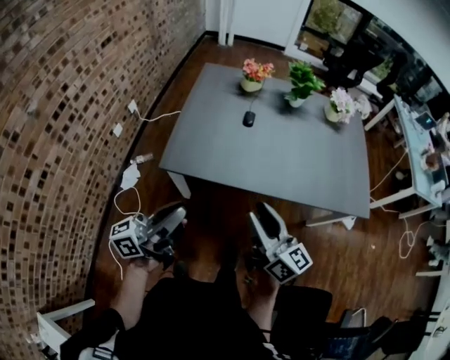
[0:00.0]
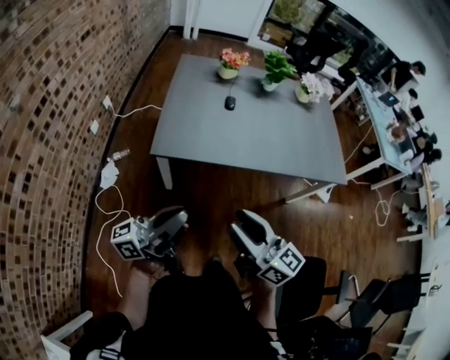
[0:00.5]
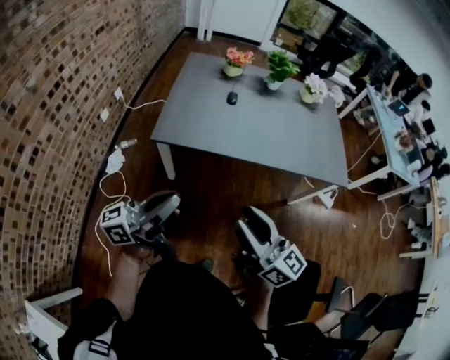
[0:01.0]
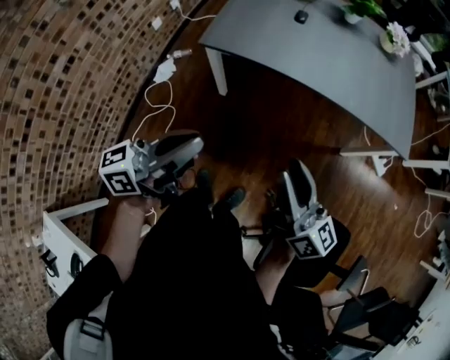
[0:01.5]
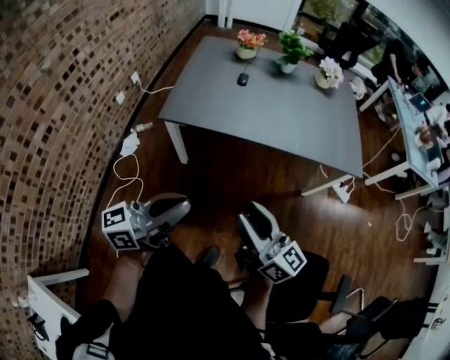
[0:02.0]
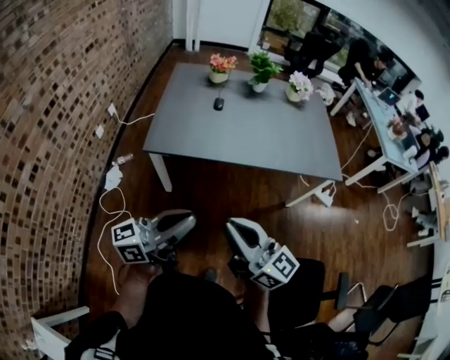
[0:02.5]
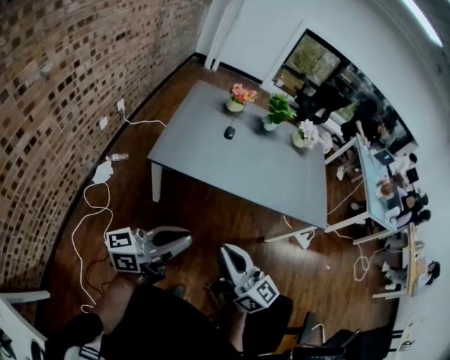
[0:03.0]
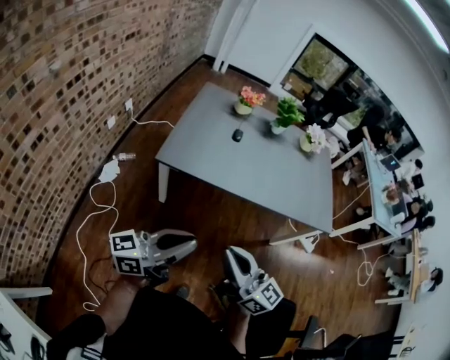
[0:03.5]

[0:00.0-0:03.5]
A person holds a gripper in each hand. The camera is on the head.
0.0 to 2.0 s: The right gripper moves backward, roughly 25 cm; the left gripper goes roughly 25 cm backward and to the right.
2.0 to 3.5 s: The right gripper goes some 10 cm to the left, and closes up. The left gripper ends up approximately 5 cm from where it was.

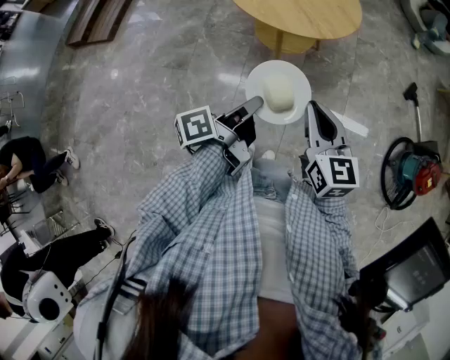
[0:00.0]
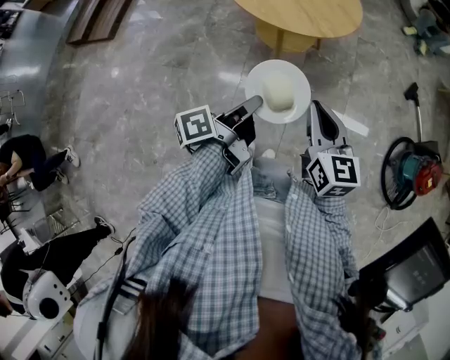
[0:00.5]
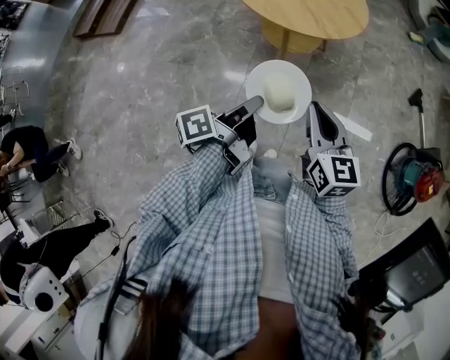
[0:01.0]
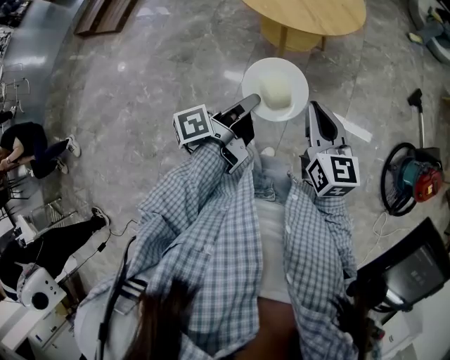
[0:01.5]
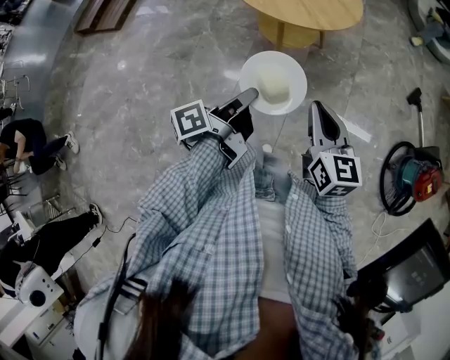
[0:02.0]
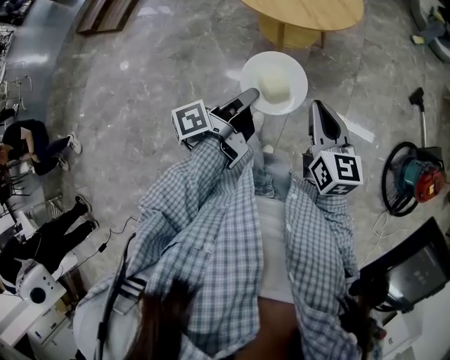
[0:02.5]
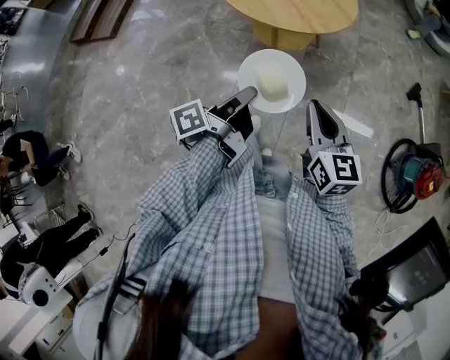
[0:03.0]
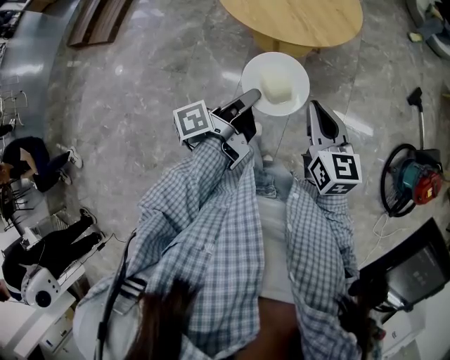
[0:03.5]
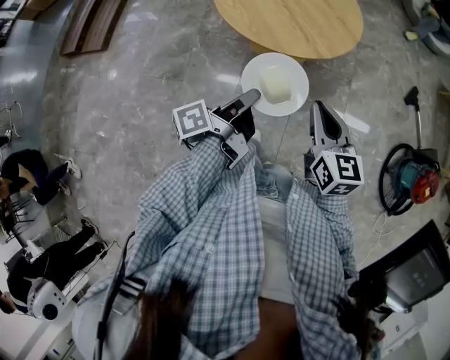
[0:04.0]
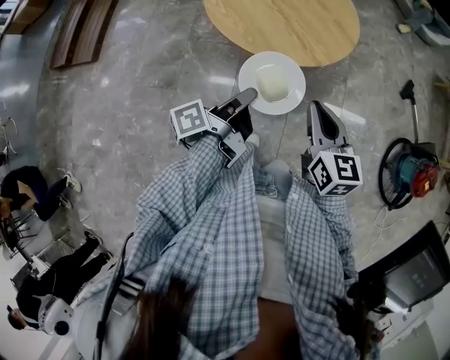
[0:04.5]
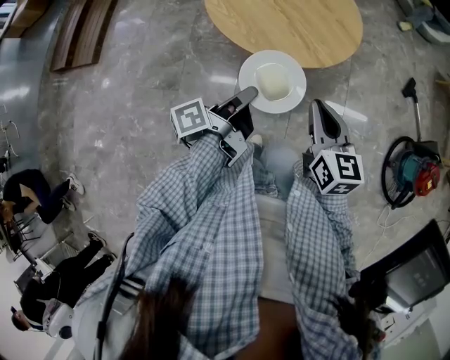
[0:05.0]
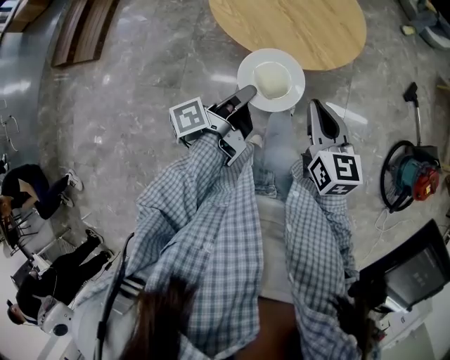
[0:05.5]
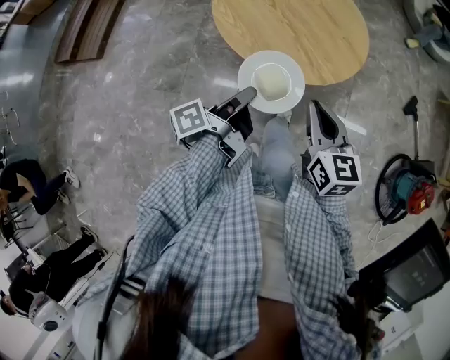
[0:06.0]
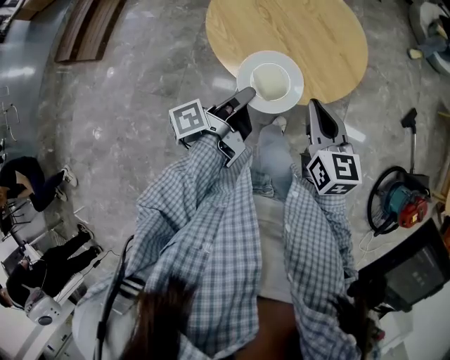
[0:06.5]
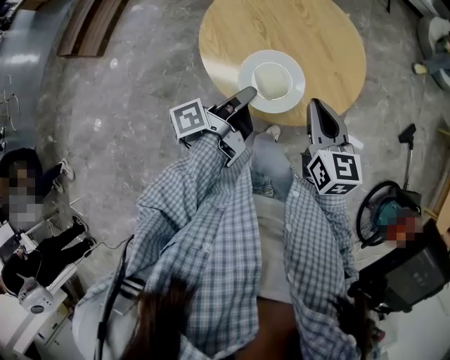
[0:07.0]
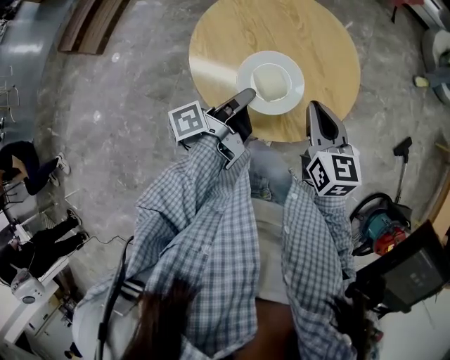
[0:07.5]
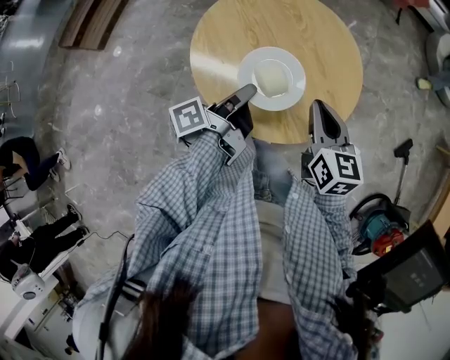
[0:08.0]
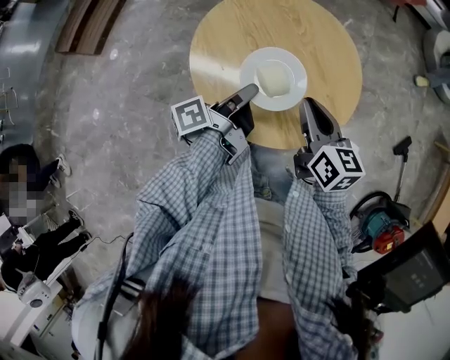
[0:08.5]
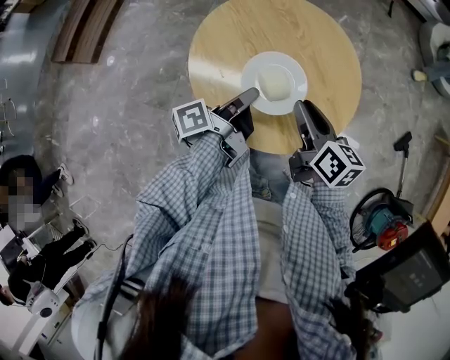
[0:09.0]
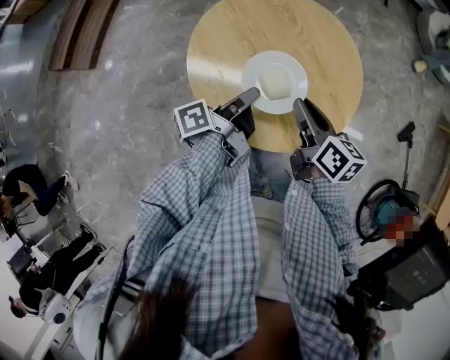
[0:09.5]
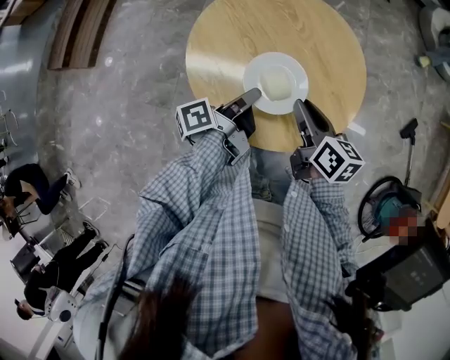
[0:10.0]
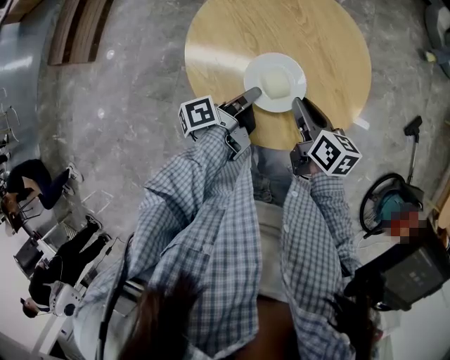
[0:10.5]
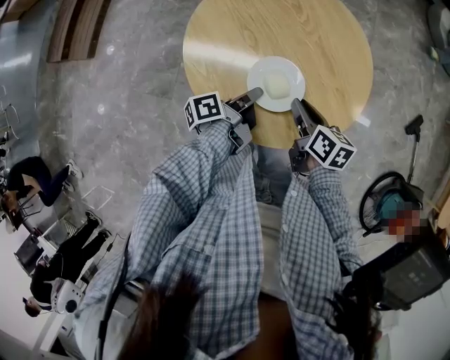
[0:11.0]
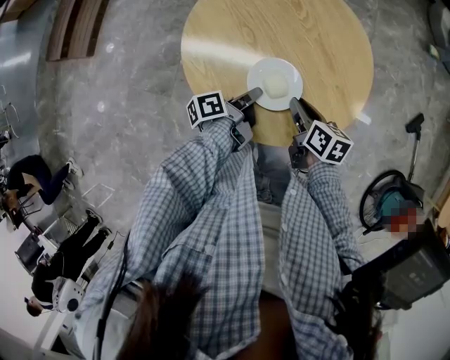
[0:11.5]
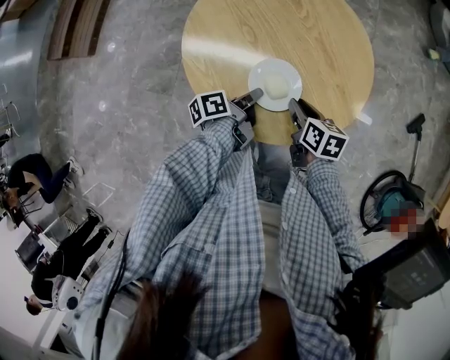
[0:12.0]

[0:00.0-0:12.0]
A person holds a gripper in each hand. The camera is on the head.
0.0 to 2.0 s: The right gripper changes place by approximately 5 cm.
2.0 to 4.0 s: The right gripper moves about 15 cm.
4.0 to 6.0 s: The right gripper changes place by roughly 10 cm.
6.0 to 8.0 s: The right gripper shifts by about 20 cm.
8.0 to 10.0 s: The right gripper changes place by some 5 cm, and rotates about 30 degrees.
10.0 to 12.0 s: The right gripper goes approximately 15 cm downward.

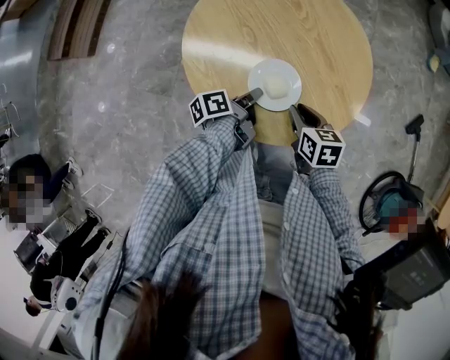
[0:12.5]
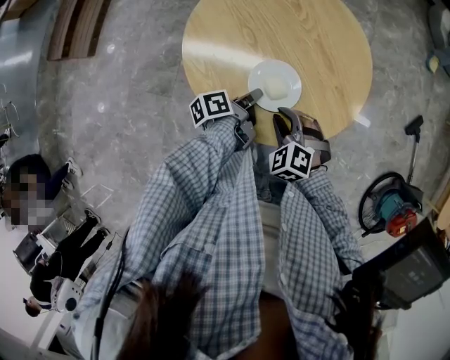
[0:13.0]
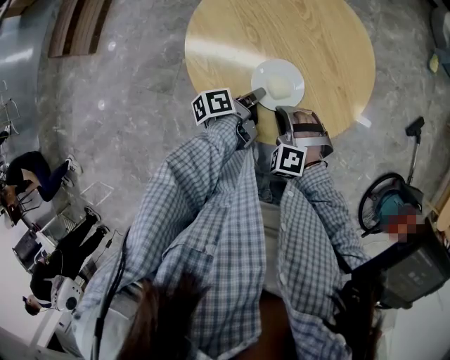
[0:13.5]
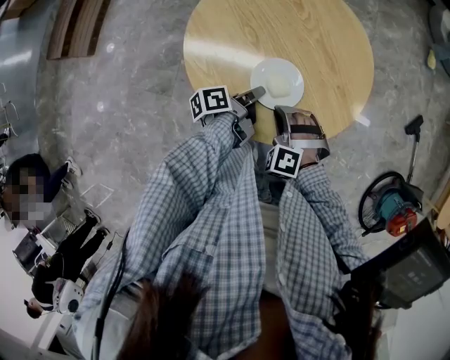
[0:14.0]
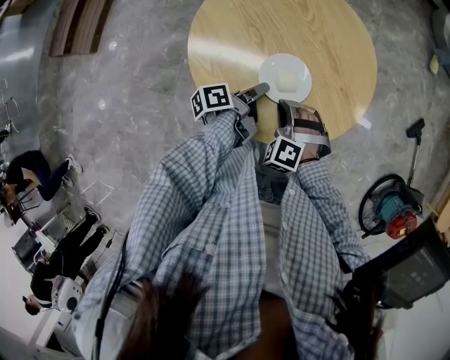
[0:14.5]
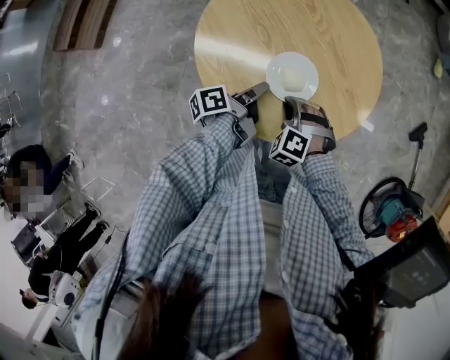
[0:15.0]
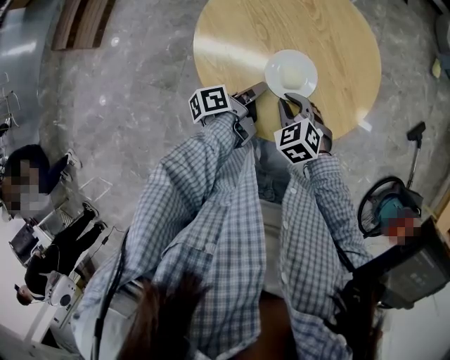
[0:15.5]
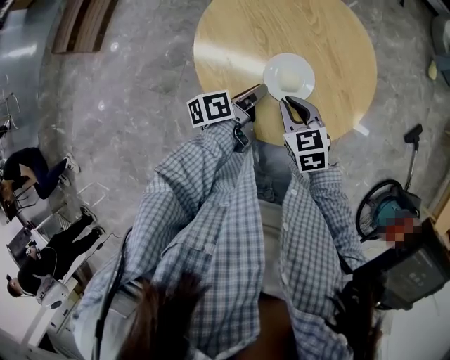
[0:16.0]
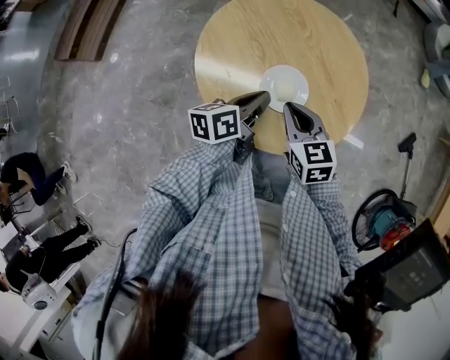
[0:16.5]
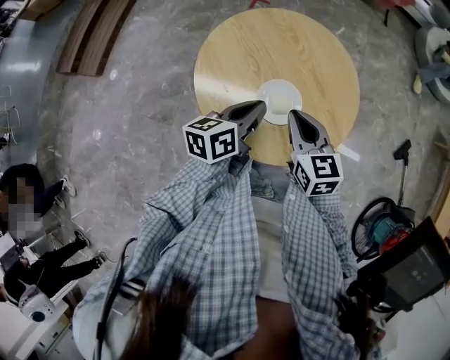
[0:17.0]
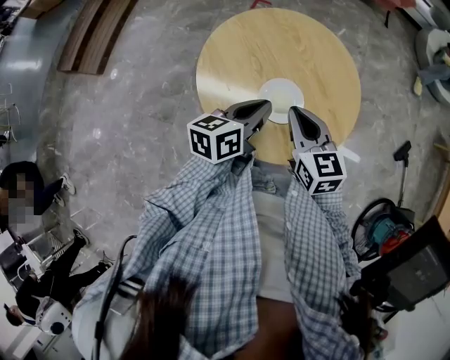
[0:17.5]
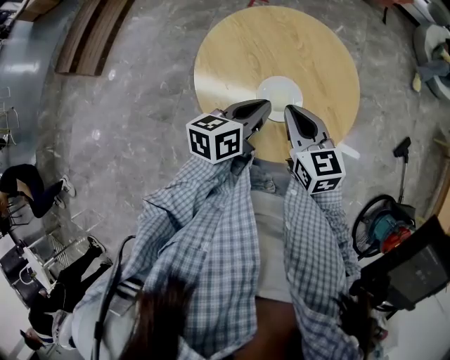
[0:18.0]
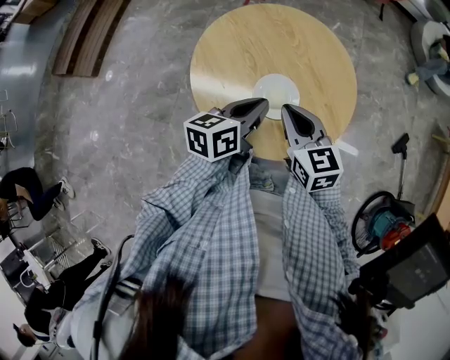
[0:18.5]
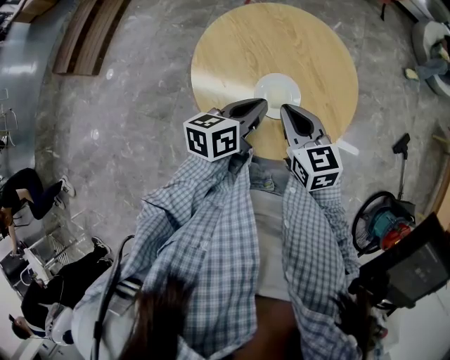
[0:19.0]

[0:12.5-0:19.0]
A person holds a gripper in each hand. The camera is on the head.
12.5 to 14.5 s: The right gripper shifts by roughly 5 cm, and rolls counterclockwise, seen from behind, by about 80 degrees.
14.5 to 17.0 s: The right gripper goes approximately 15 cm upward, and rotates around the line of its fingers by some 60 degrees, clockwise from behind.

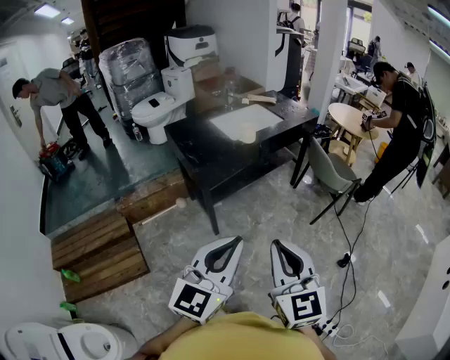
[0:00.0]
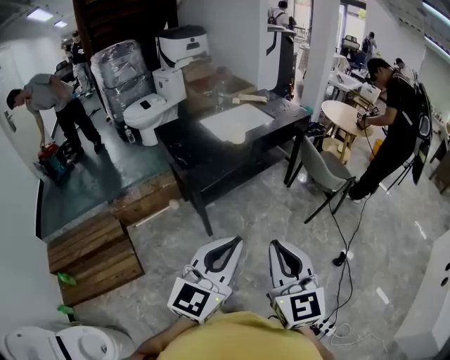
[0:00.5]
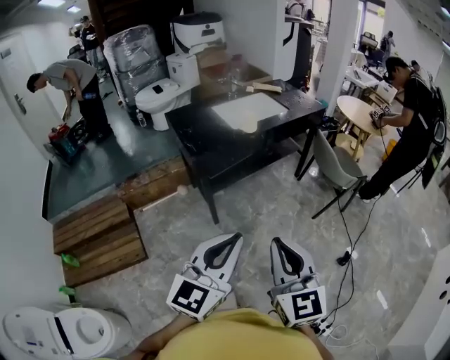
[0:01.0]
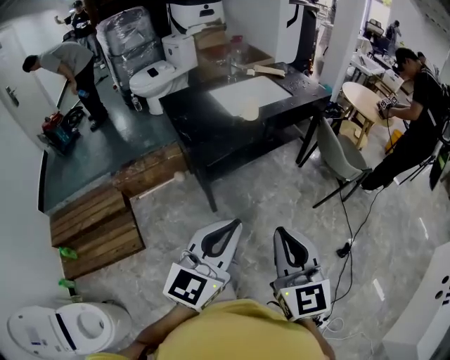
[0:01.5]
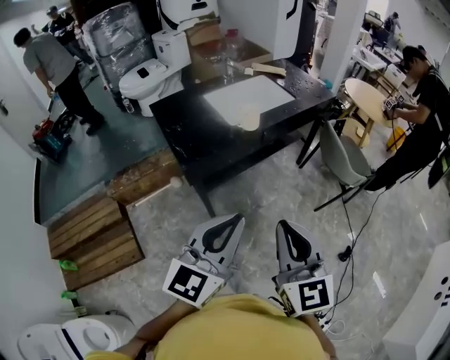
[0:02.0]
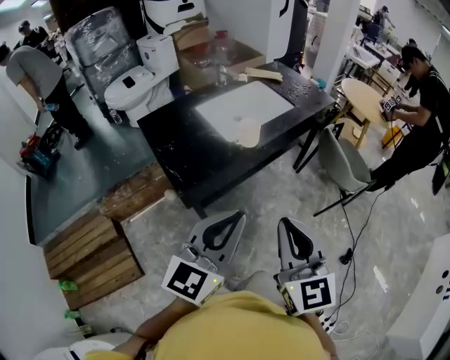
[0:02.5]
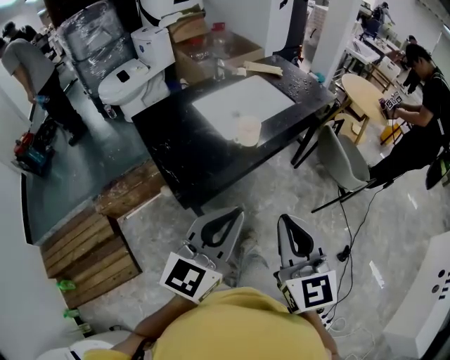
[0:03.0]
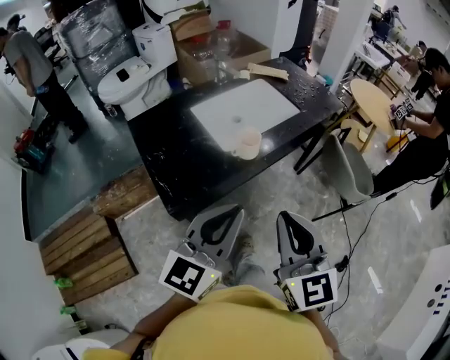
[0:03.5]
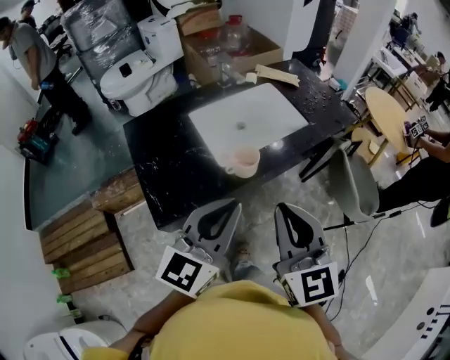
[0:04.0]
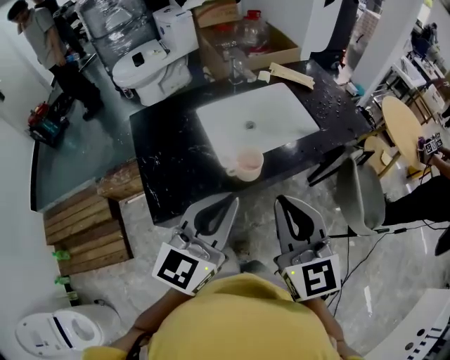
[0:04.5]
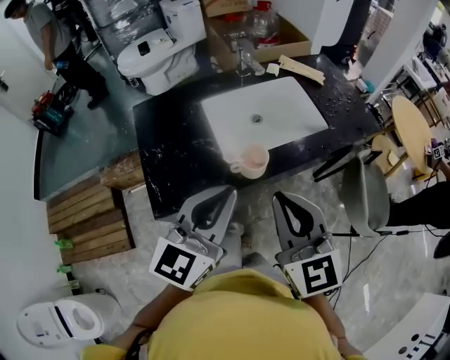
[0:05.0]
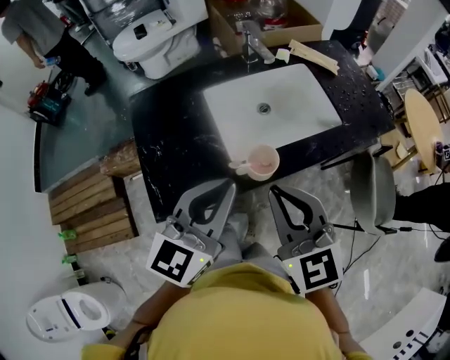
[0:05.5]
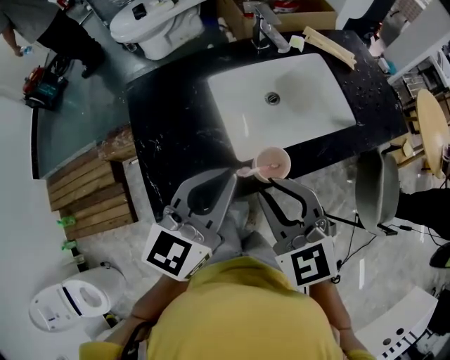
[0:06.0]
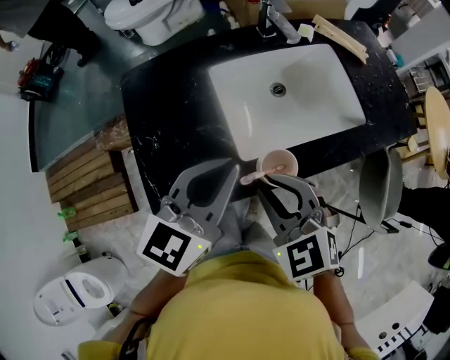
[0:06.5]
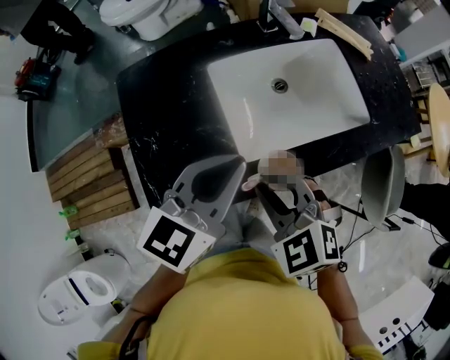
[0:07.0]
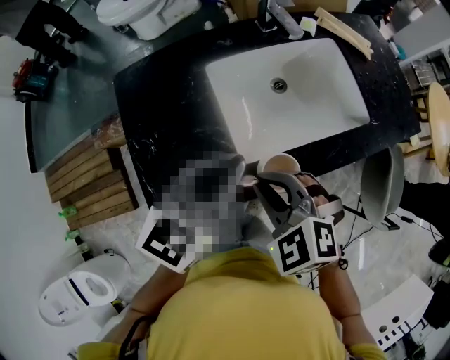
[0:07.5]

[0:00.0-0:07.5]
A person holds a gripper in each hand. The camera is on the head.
0.0 to 2.0 s: Both grippers travel together forward, some 20 cm.
2.0 to 4.0 s: Both grippers travel together forward, about 30 cm.
4.0 to 5.5 s: Both grippers move forward, roughly 10 cm.
5.5 to 7.5 s: The right gripper is displaced downward, forward and to the left by approximately 15 cm, and points its fingers about 30 degrees further downward; the left gripper travels forward and downward by approximately 10 cm.
